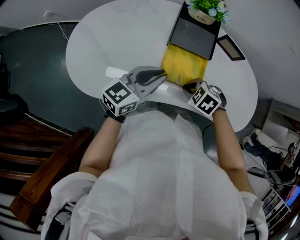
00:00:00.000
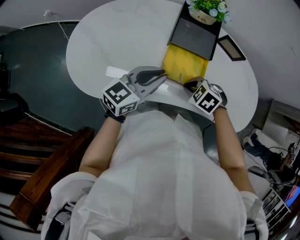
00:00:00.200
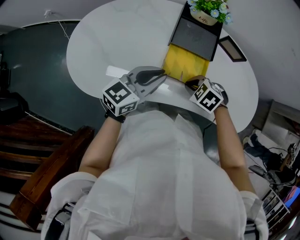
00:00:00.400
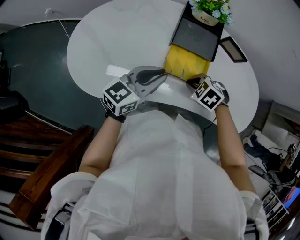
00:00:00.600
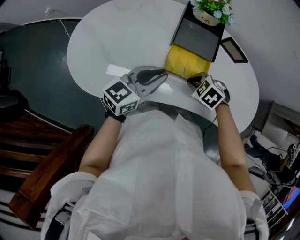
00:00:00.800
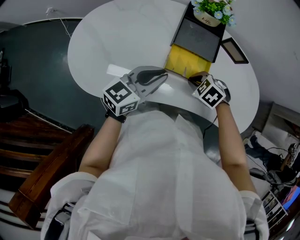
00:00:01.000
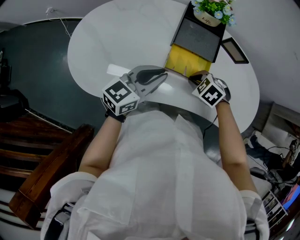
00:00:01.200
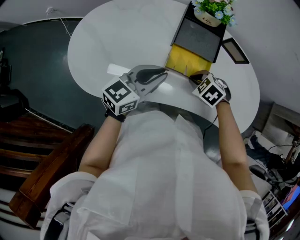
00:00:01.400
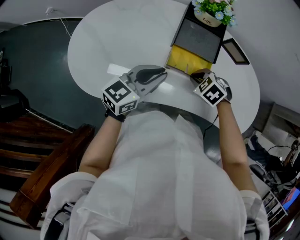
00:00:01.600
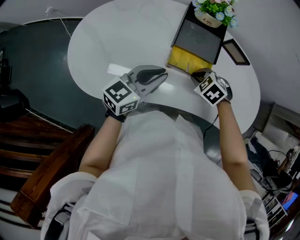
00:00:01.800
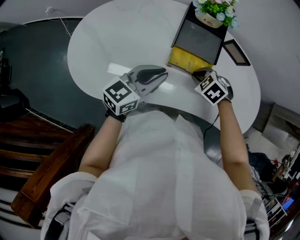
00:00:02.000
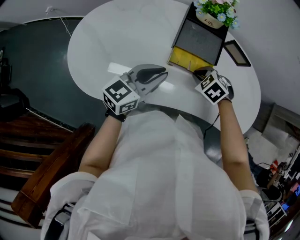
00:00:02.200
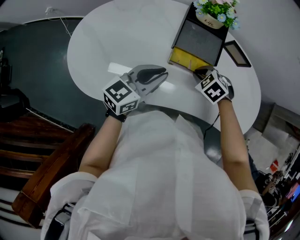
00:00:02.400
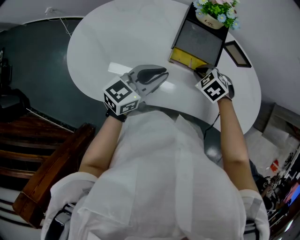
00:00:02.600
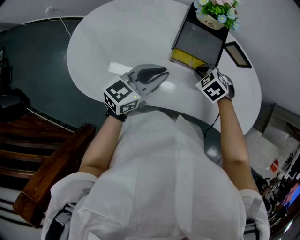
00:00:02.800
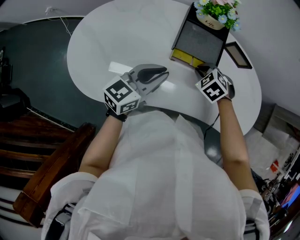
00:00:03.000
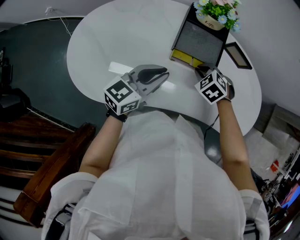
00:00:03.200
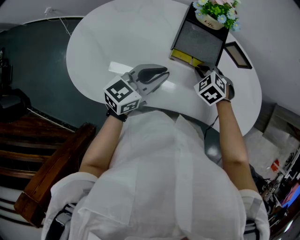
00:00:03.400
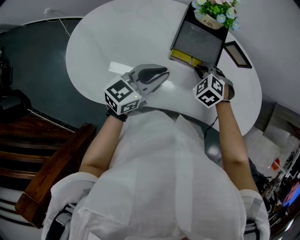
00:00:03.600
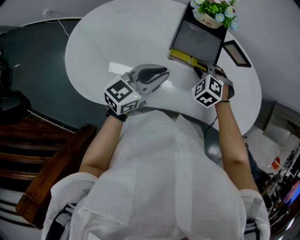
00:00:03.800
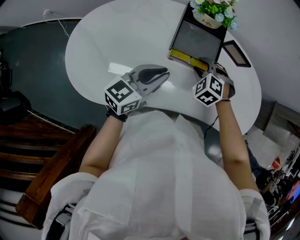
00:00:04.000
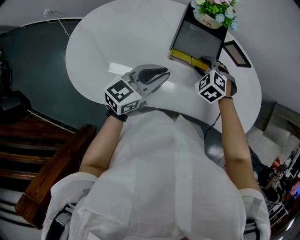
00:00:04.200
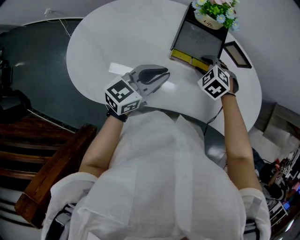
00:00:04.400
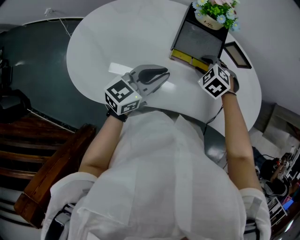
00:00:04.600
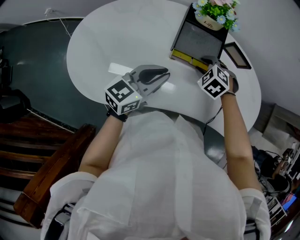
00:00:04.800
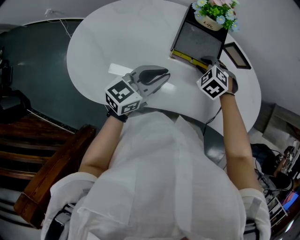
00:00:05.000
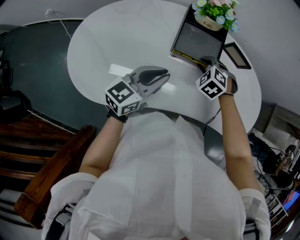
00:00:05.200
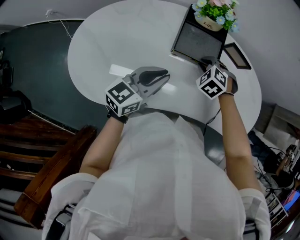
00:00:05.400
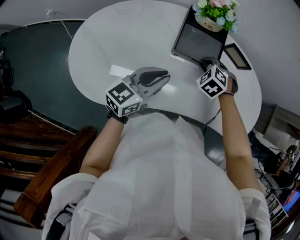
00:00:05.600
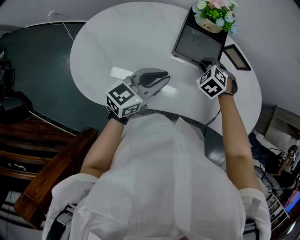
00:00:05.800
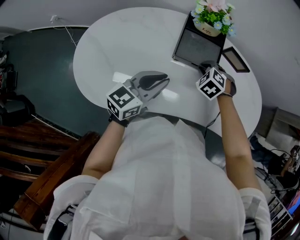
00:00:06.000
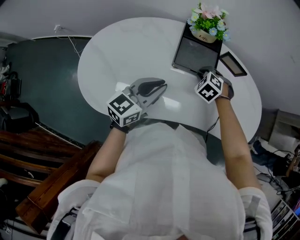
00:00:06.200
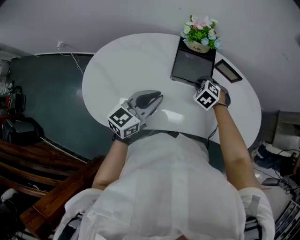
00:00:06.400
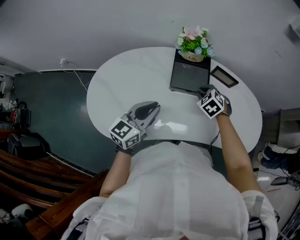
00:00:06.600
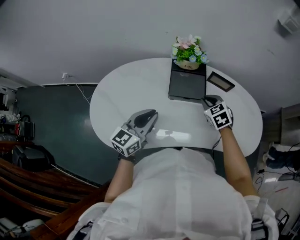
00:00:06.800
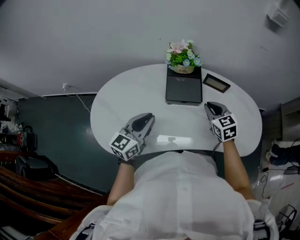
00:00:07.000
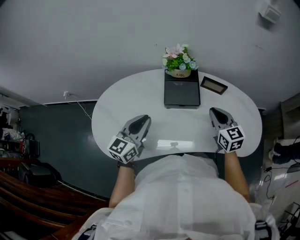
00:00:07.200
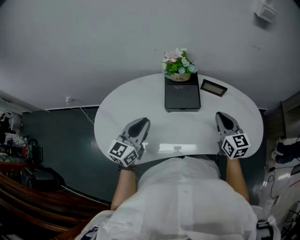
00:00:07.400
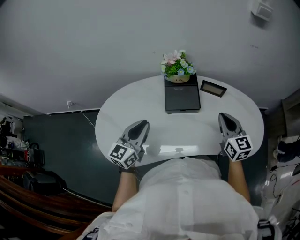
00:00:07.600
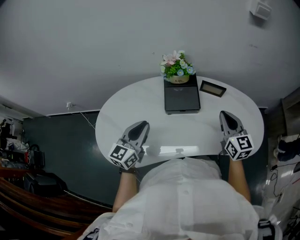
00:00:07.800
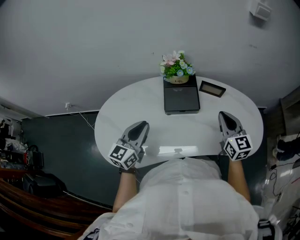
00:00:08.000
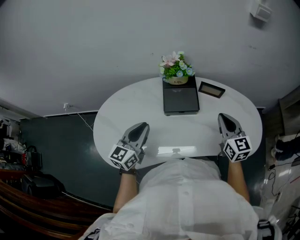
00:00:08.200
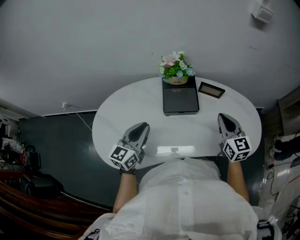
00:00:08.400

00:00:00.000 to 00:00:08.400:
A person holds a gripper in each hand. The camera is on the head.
00:00:00.000 to 00:00:01.400: The right gripper ends up about 5 cm from where it was.
00:00:01.400 to 00:00:02.800: The right gripper shifts about 5 cm forward.
00:00:02.800 to 00:00:04.200: The right gripper opens up.
00:00:04.200 to 00:00:05.600: The right gripper closes.
00:00:05.600 to 00:00:07.000: The left gripper travels upward by approximately 5 cm. Meanwhile the right gripper heads upward and to the right, covering approximately 15 cm, and twists roughly 50 degrees clockwise, seen from behind.
00:00:07.000 to 00:00:08.400: The right gripper is displaced upward and to the right by about 10 cm, and turns by some 20 degrees.

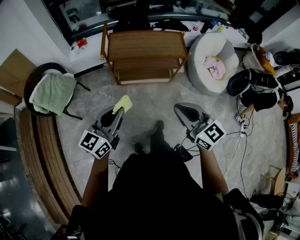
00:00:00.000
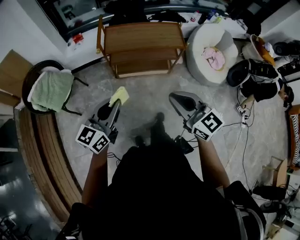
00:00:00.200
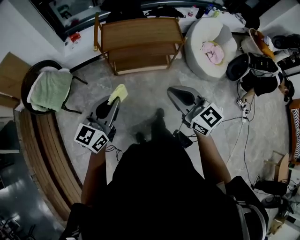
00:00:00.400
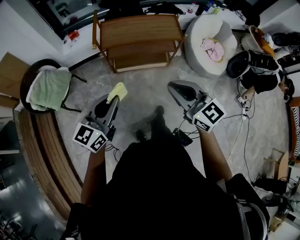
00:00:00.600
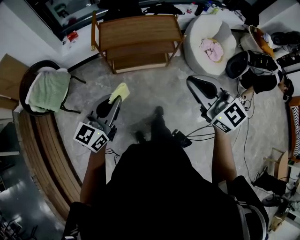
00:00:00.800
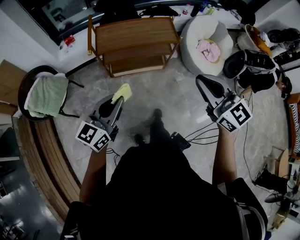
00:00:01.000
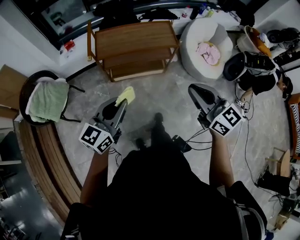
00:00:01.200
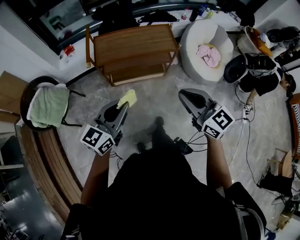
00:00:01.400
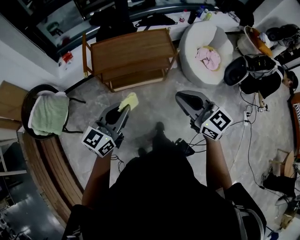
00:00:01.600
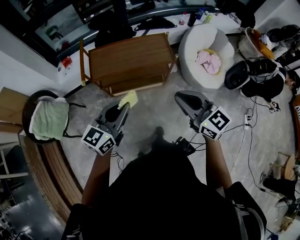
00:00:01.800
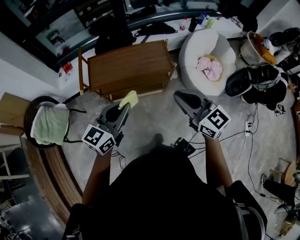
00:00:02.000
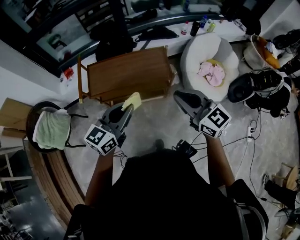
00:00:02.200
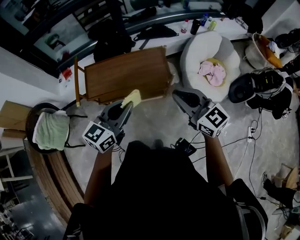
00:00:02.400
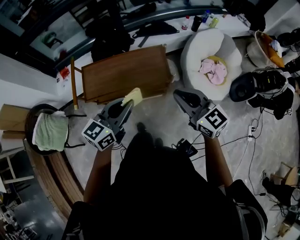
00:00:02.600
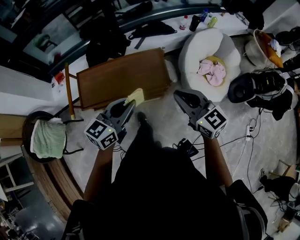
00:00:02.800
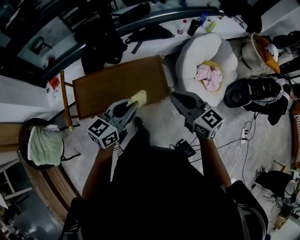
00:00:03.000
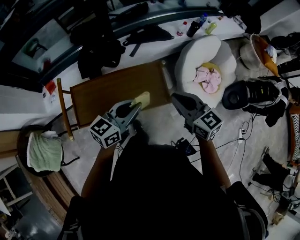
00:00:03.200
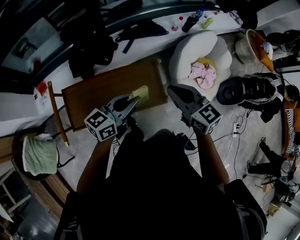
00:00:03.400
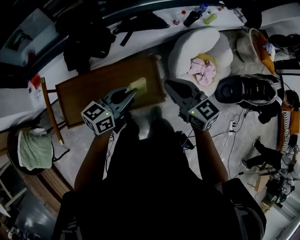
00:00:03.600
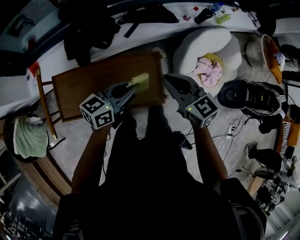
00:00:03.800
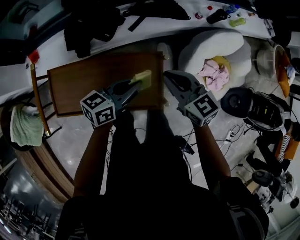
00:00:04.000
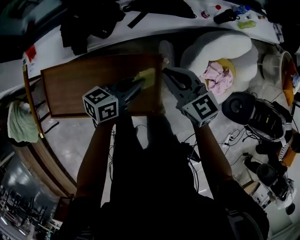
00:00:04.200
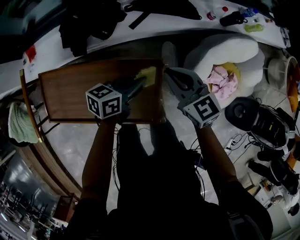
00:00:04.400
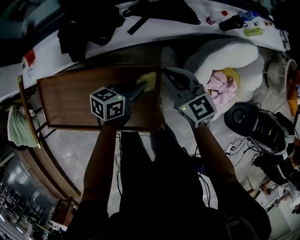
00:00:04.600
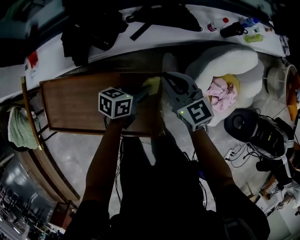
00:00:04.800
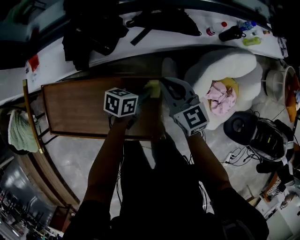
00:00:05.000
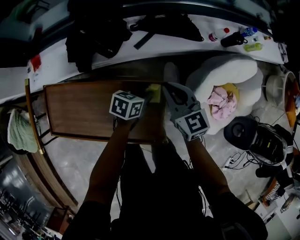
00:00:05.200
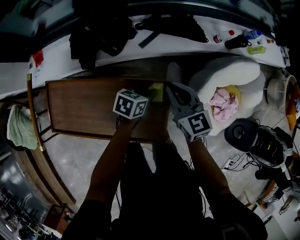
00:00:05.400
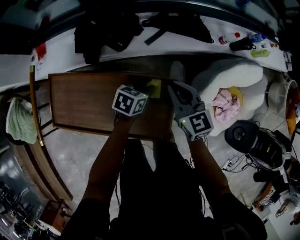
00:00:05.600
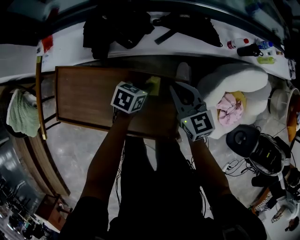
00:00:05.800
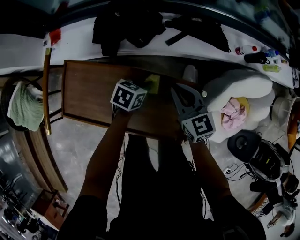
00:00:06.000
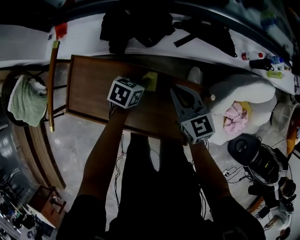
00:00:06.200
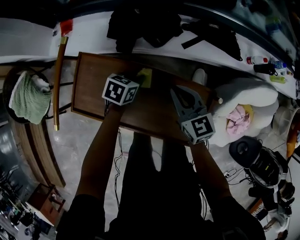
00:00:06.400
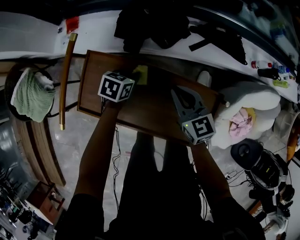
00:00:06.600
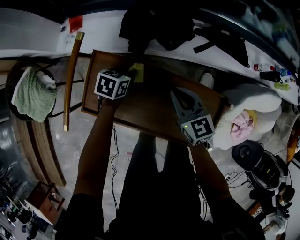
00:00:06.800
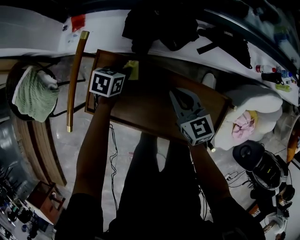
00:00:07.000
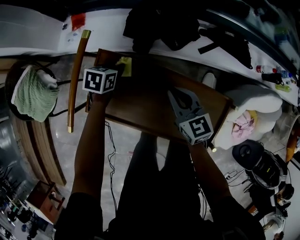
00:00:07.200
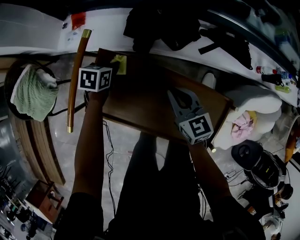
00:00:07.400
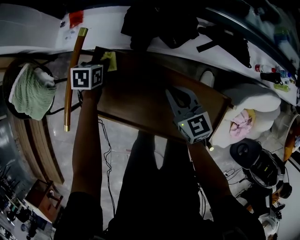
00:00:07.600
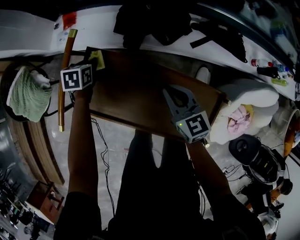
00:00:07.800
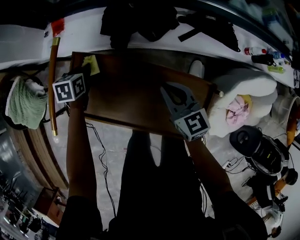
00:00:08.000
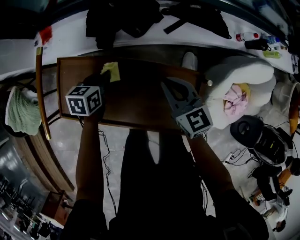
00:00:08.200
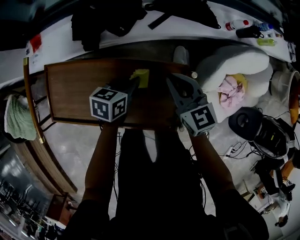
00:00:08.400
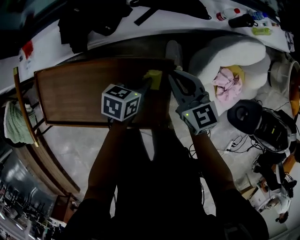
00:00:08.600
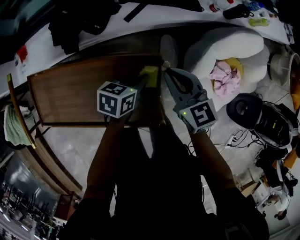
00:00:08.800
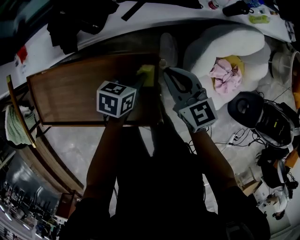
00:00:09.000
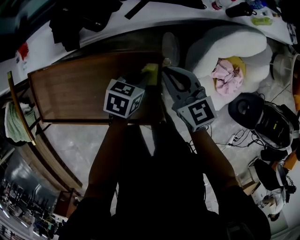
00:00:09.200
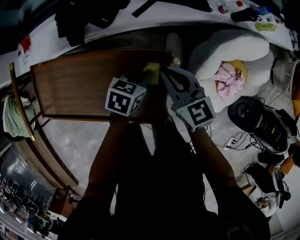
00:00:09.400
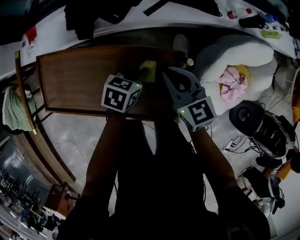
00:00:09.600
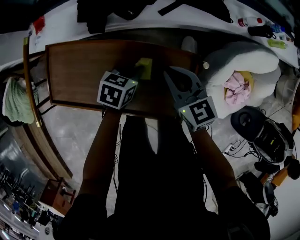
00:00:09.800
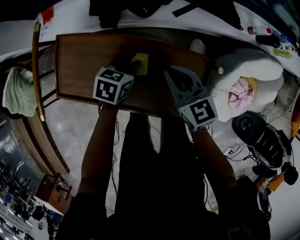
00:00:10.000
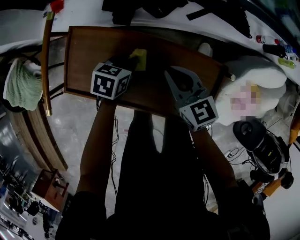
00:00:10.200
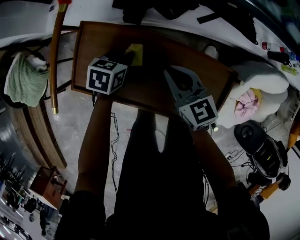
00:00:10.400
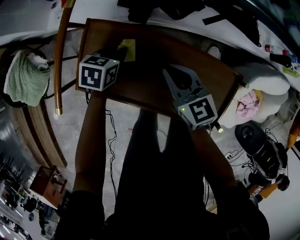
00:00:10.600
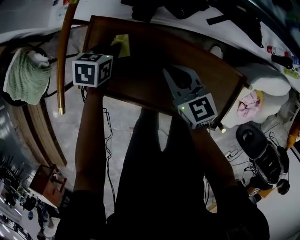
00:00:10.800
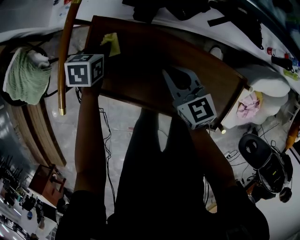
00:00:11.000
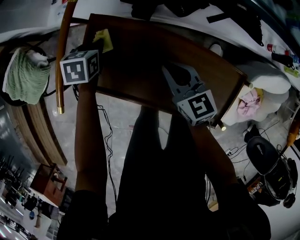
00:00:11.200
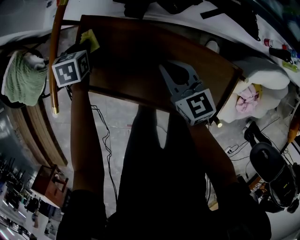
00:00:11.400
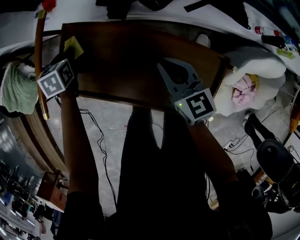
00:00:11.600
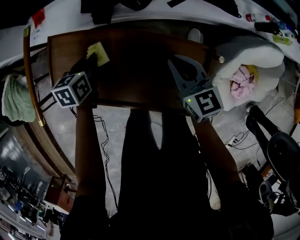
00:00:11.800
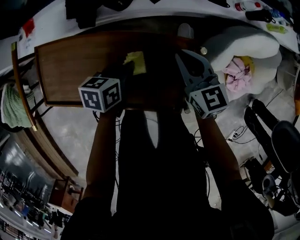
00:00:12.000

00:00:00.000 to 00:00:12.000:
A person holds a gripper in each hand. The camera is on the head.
00:00:00.000 to 00:00:01.600: Both grippers move forward and to the right, about 15 cm.
00:00:01.600 to 00:00:03.000: The right gripper goes roughly 35 cm forward; the left gripper heads forward and to the right, covering some 35 cm.
00:00:03.000 to 00:00:04.400: The grippers both shift forward and downward by roughly 35 cm. The left gripper swivels roughly 30 degrees.
00:00:04.400 to 00:00:06.000: The left gripper is displaced to the left and downward by some 15 cm, and turns by some 30 degrees. The right gripper heads to the left, covering about 10 cm.
00:00:06.000 to 00:00:07.600: The right gripper travels to the left by approximately 20 cm. The left gripper shifts approximately 35 cm to the left, and rotates about 30 degrees.
00:00:07.600 to 00:00:09.000: The right gripper ends up roughly 35 cm from where it was. The left gripper ends up about 50 cm from where it was, and changes its angle by some 30 degrees.
00:00:09.000 to 00:00:10.400: The grippers both shift to the left by about 35 cm.
00:00:10.400 to 00:00:12.000: The right gripper ends up approximately 20 cm from where it was; the left gripper ends up some 20 cm from where it was.

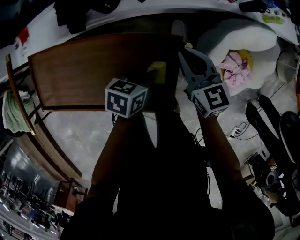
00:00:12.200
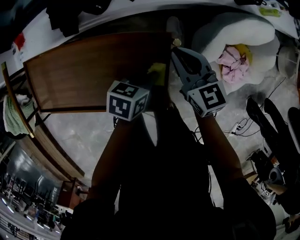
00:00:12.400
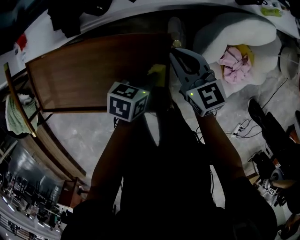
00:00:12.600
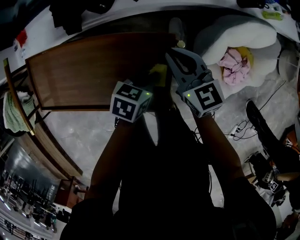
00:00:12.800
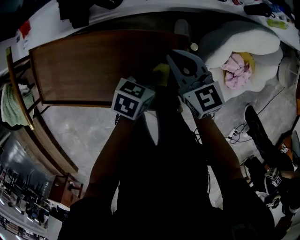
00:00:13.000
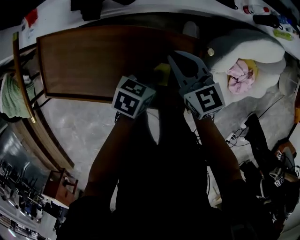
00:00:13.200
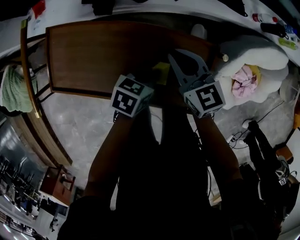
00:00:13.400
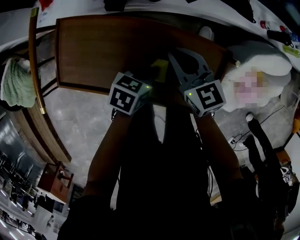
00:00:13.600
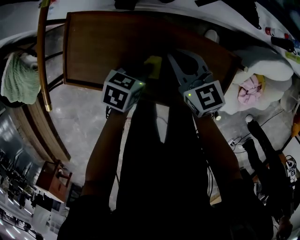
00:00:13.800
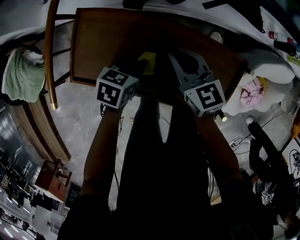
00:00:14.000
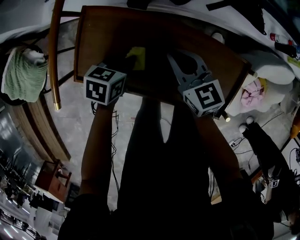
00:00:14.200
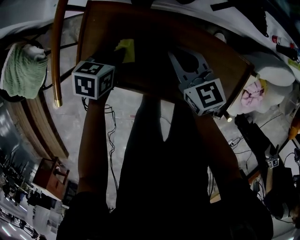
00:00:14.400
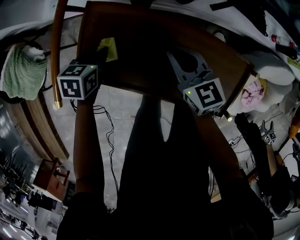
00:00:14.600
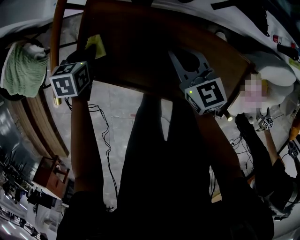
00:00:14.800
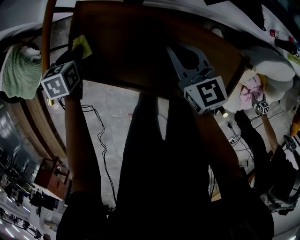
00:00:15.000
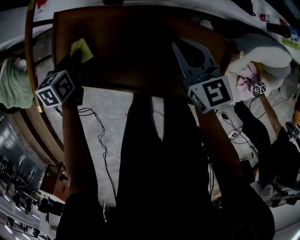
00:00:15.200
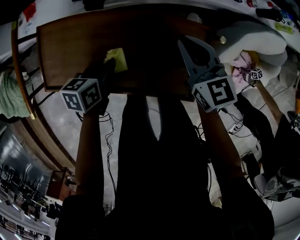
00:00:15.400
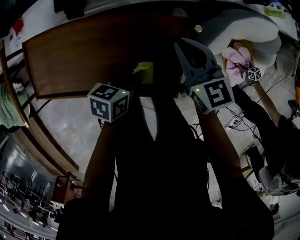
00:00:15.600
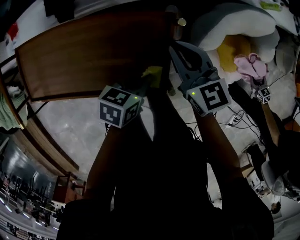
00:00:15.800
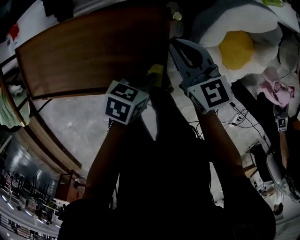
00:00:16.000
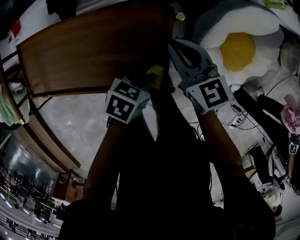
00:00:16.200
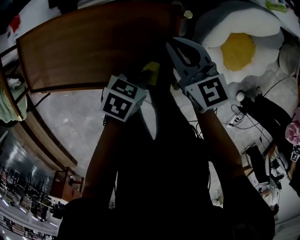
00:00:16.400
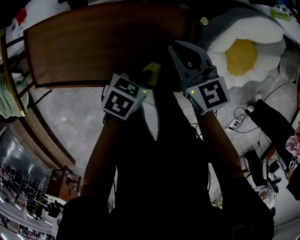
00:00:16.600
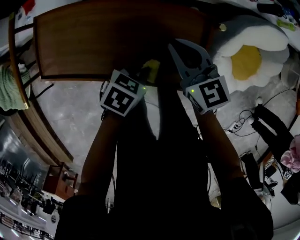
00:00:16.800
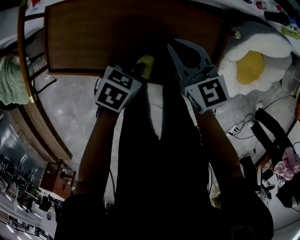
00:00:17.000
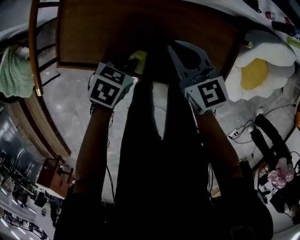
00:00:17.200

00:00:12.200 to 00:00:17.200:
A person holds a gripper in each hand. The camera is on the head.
00:00:12.200 to 00:00:13.800: Both grippers move to the left, approximately 25 cm.
00:00:13.800 to 00:00:15.600: The right gripper shifts by roughly 20 cm.
00:00:15.600 to 00:00:17.200: The right gripper goes some 20 cm to the left and backward; the left gripper is displaced to the left by roughly 20 cm, and rotates some 20 degrees.
